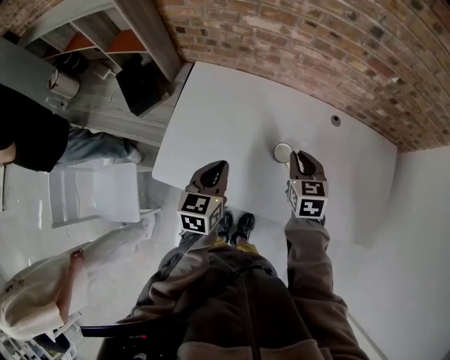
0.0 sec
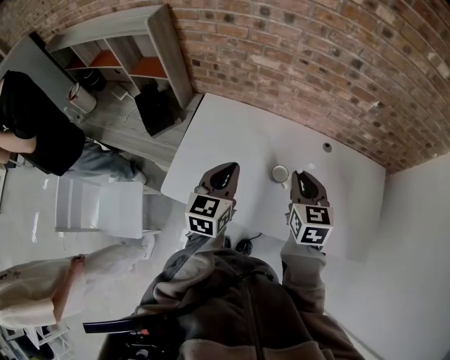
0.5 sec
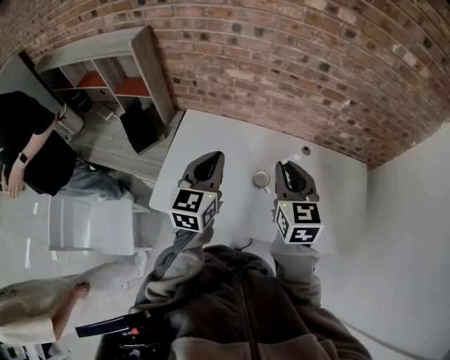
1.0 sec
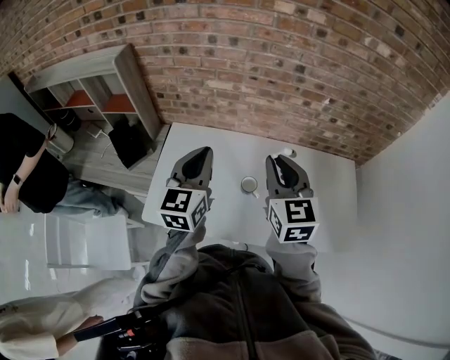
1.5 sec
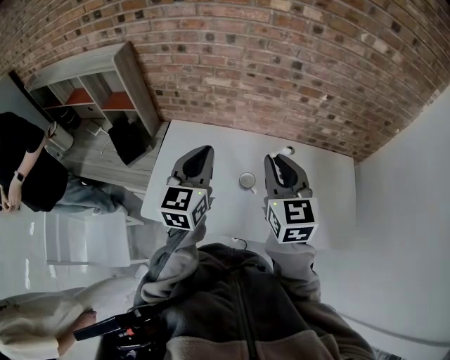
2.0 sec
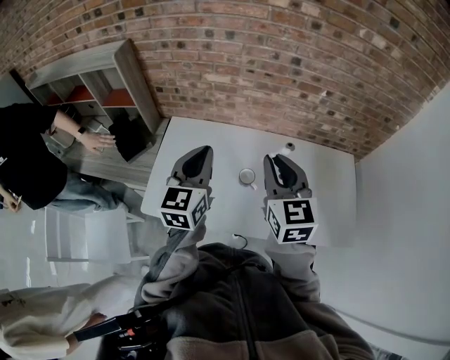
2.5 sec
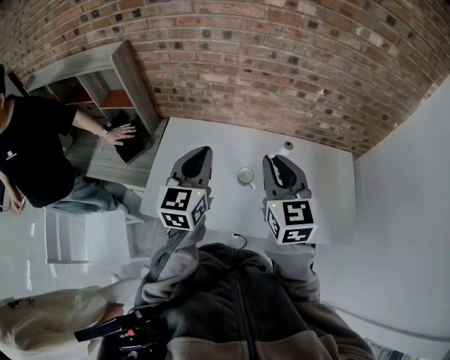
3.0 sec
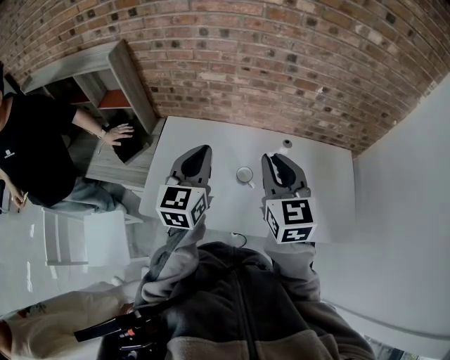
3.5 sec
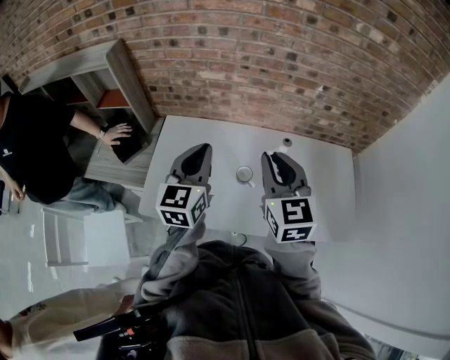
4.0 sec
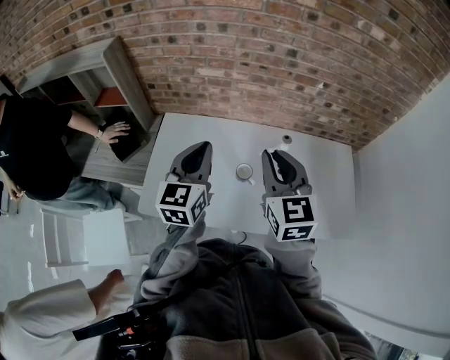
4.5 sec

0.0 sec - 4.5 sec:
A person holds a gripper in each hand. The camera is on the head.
0.0 sec - 2.0 sec: The grippers both shift upward by roughly 25 cm. The right gripper turns by approximately 30 degrees; the left gripper swivels roughly 30 degrees.
2.0 sec - 4.5 sec: The grippers make only small movements.

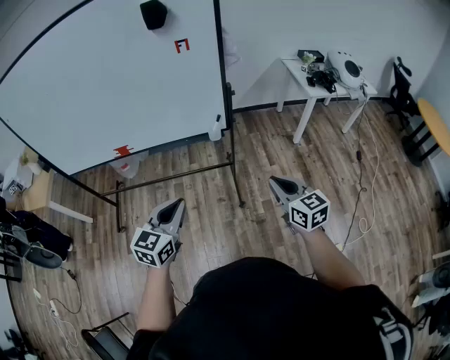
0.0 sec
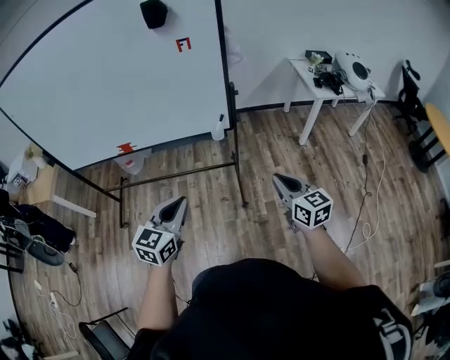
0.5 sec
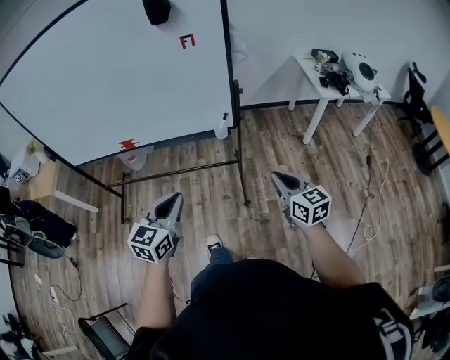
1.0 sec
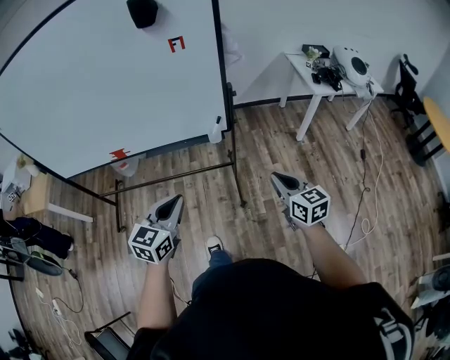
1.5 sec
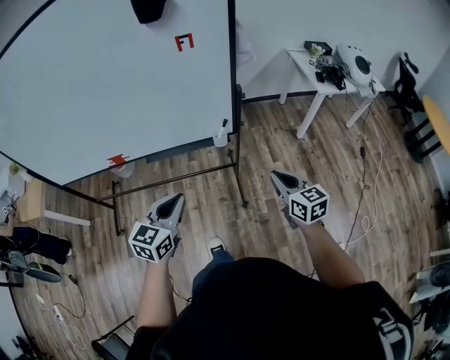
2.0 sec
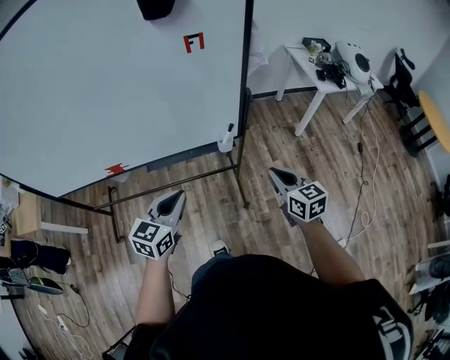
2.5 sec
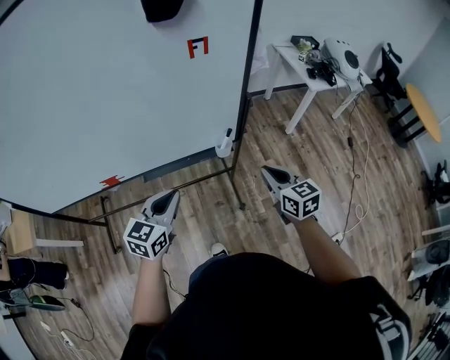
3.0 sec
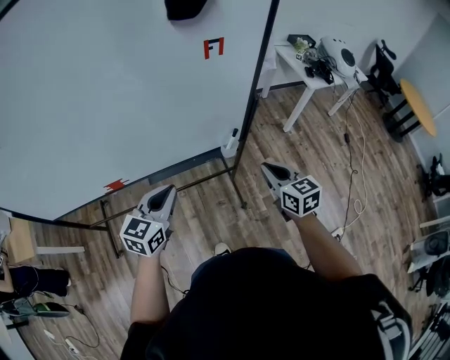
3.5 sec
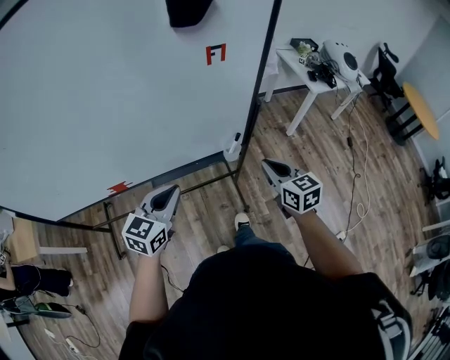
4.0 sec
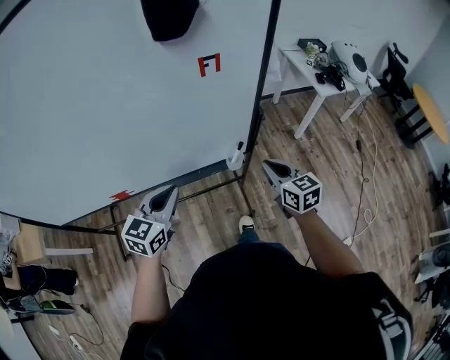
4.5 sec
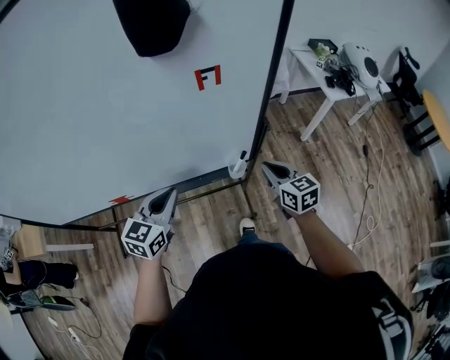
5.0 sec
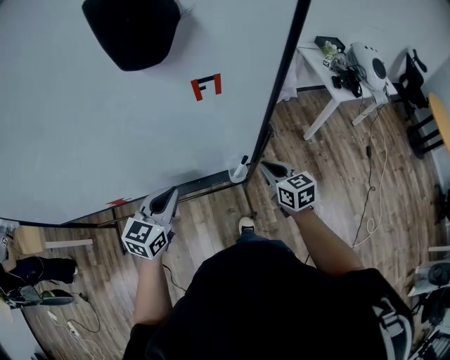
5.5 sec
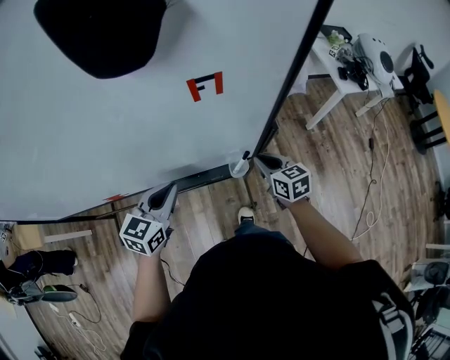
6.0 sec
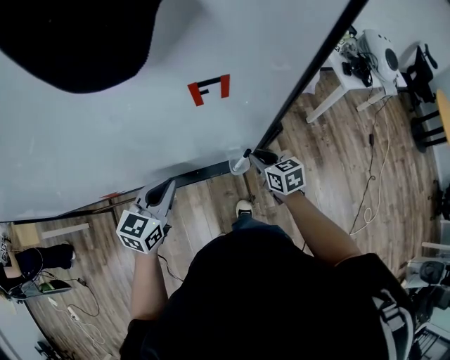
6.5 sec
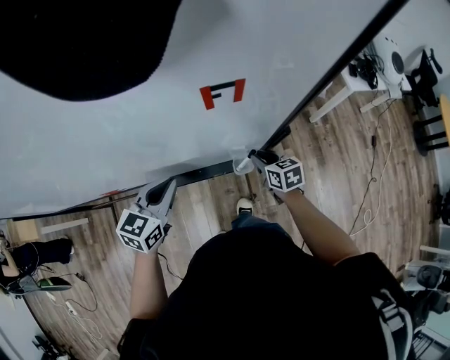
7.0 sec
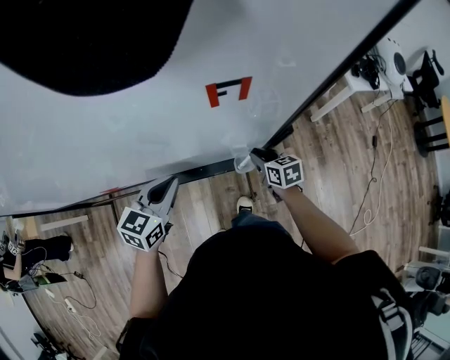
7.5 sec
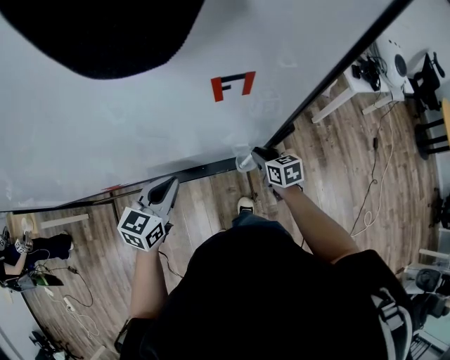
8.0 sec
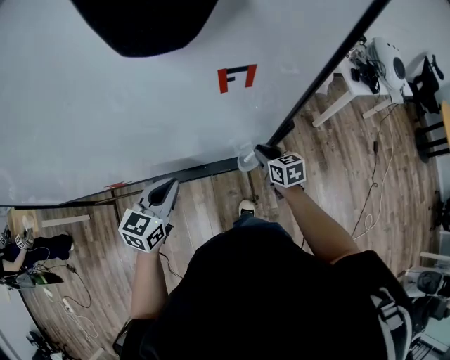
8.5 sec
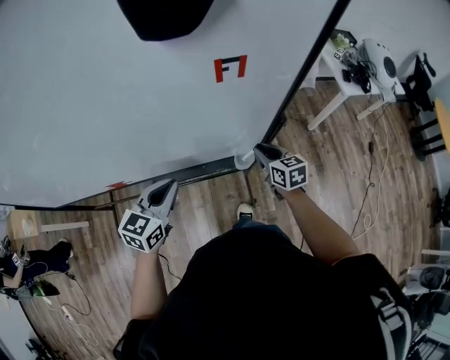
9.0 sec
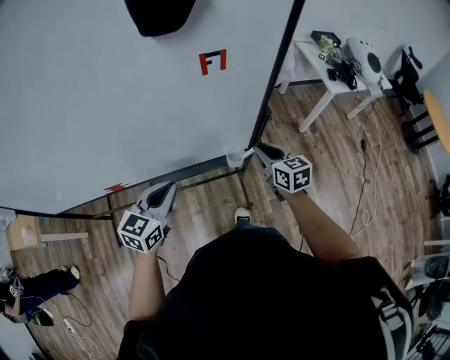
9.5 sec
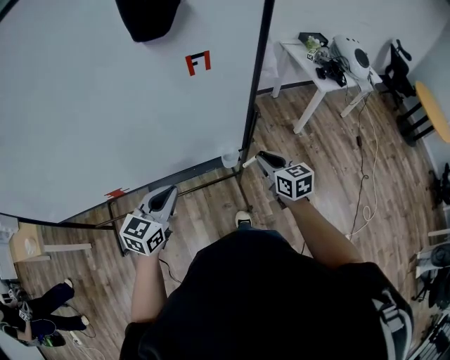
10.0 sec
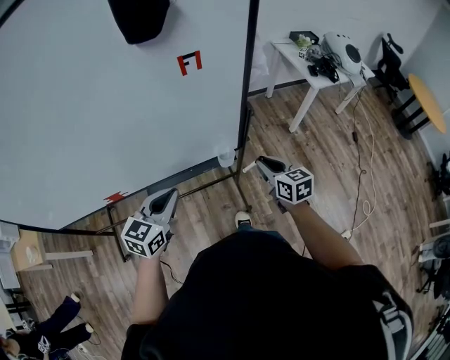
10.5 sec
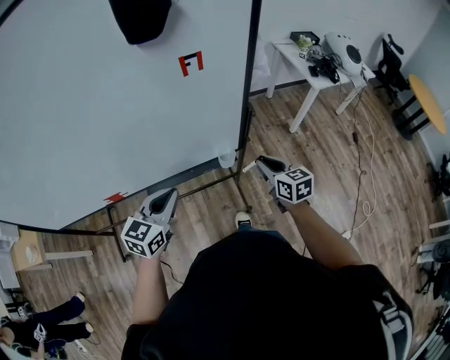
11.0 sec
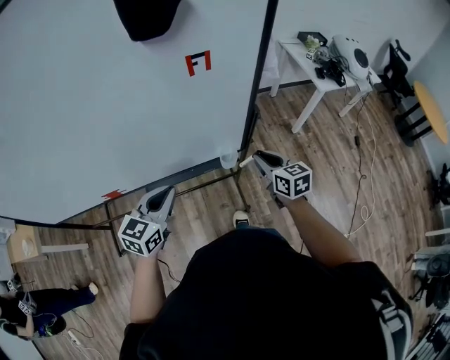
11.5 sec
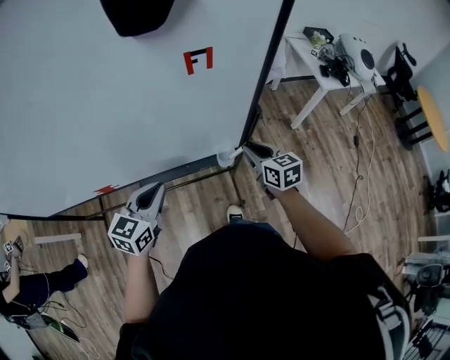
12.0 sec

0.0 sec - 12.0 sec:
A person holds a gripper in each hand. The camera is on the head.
0.0 sec - 2.0 sec: Both grippers travel together forward, about 15 cm.
2.0 sec - 4.0 sec: The right gripper shifts about 20 cm to the left and forward. Meanwhile the left gripper goes about 20 cm forward and to the left.
4.0 sec - 6.0 sec: The left gripper goes about 15 cm forward. Meanwhile the right gripper goes about 20 cm forward and downward.
6.0 sec - 8.0 sec: The right gripper is displaced downward by roughly 10 cm.
8.0 sec - 10.0 sec: The right gripper heads upward and backward, covering about 20 cm. Meanwhile the left gripper goes some 10 cm backward.
10.0 sec - 12.0 sec: The right gripper is displaced forward by about 5 cm.

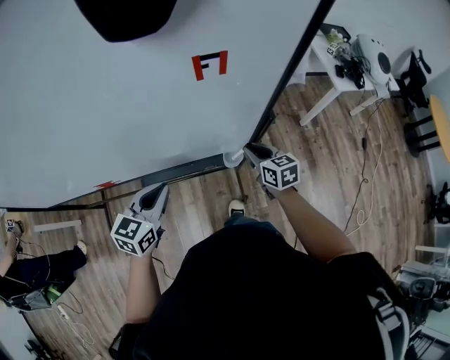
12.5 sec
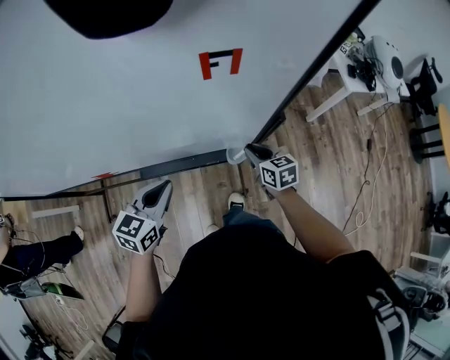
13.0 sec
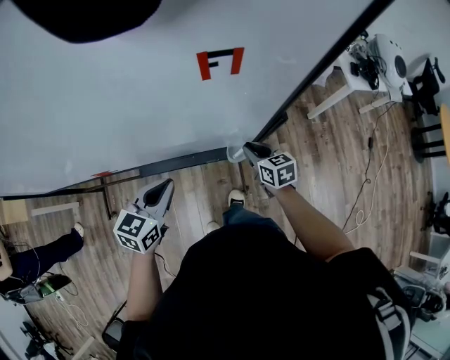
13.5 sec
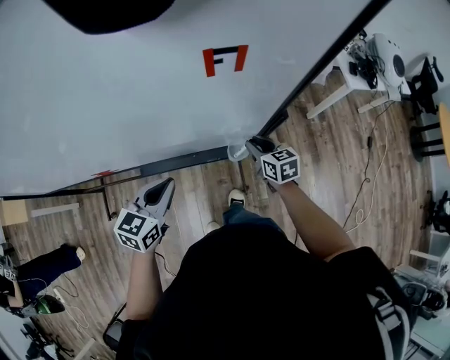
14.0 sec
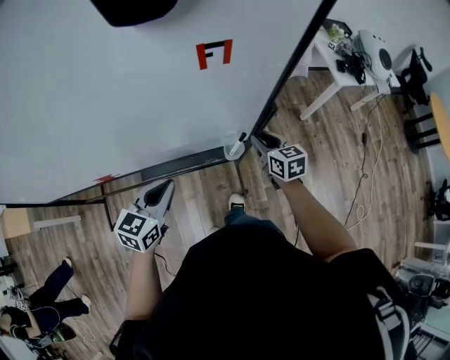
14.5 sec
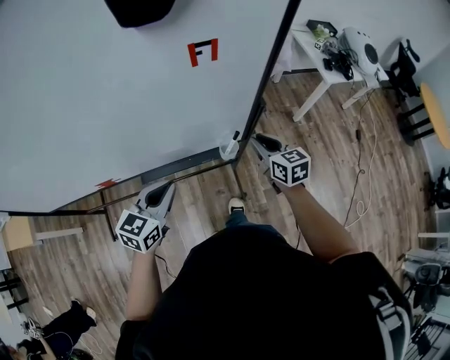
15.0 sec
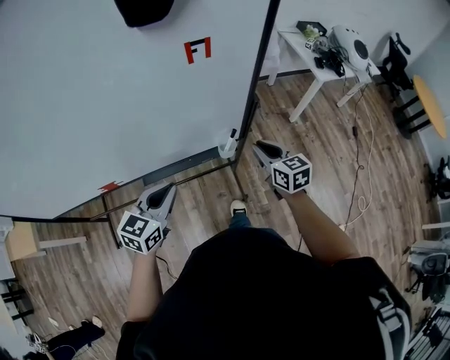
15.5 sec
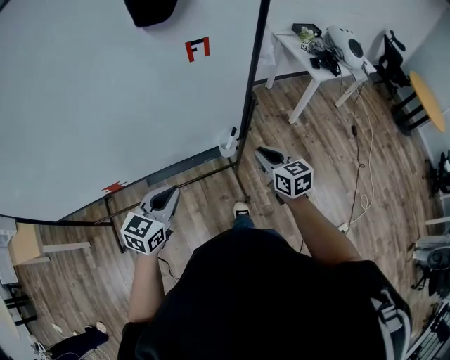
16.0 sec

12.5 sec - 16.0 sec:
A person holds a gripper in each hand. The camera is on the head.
12.5 sec - 14.5 sec: The grippers move only a little.
14.5 sec - 16.0 sec: The right gripper heads backward and upward, covering roughly 15 cm, while the left gripper moves backward, roughly 5 cm.

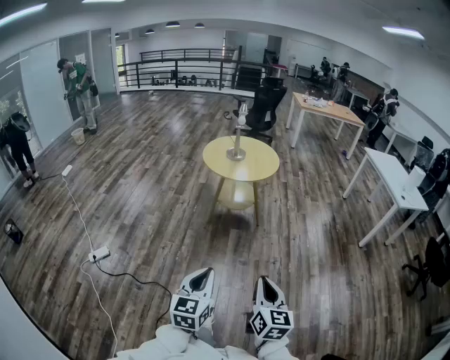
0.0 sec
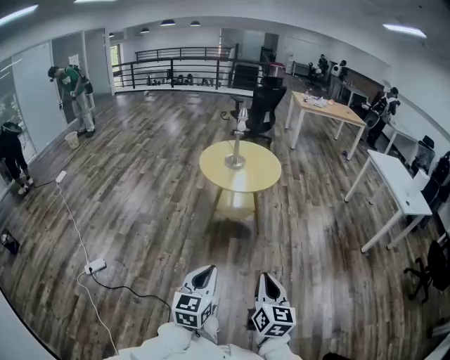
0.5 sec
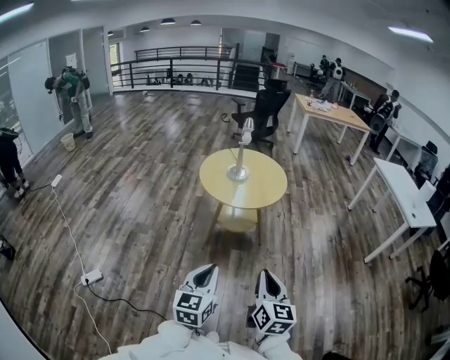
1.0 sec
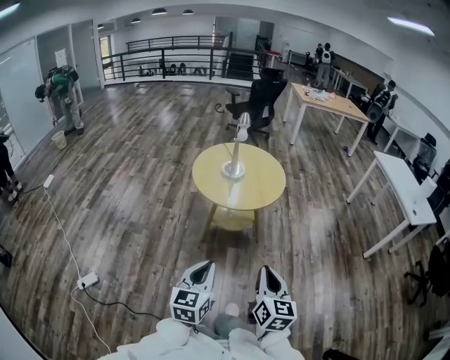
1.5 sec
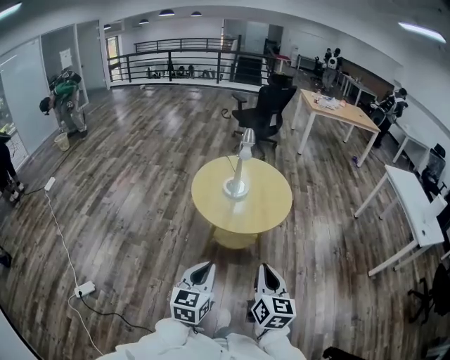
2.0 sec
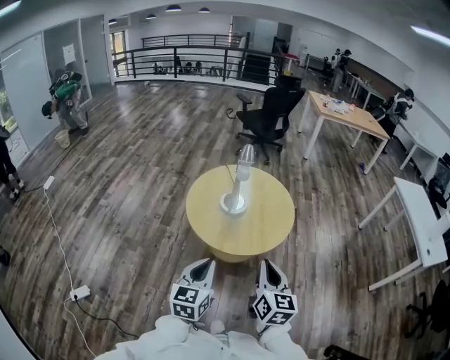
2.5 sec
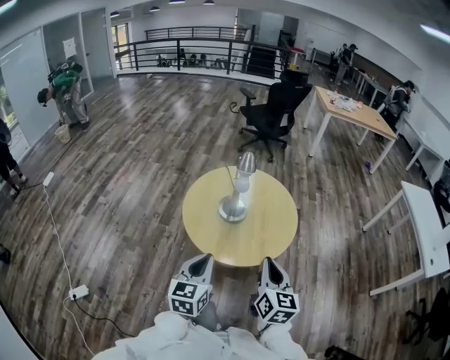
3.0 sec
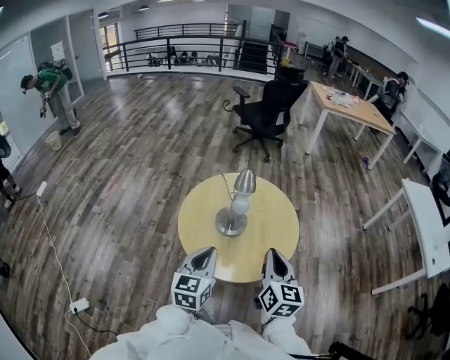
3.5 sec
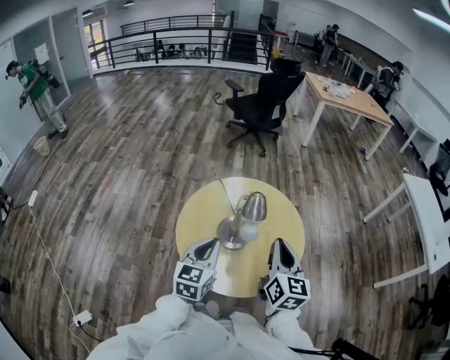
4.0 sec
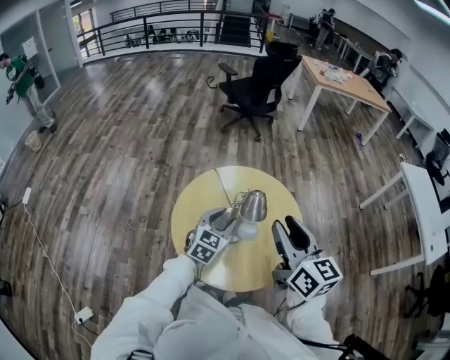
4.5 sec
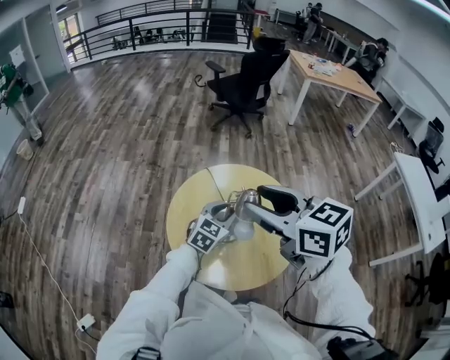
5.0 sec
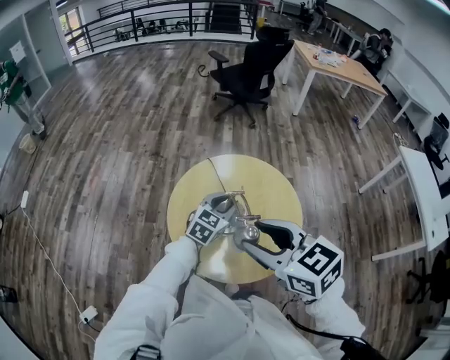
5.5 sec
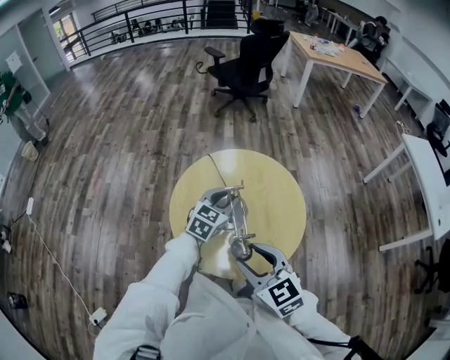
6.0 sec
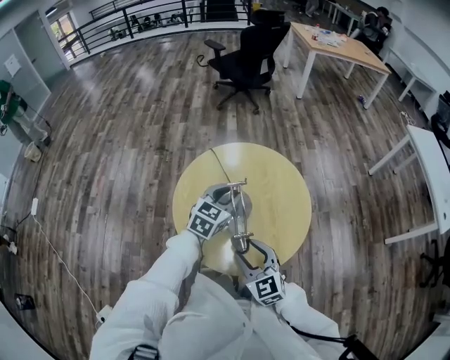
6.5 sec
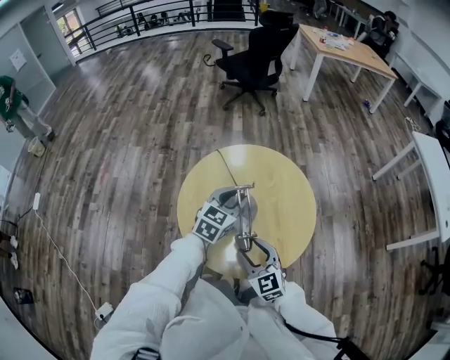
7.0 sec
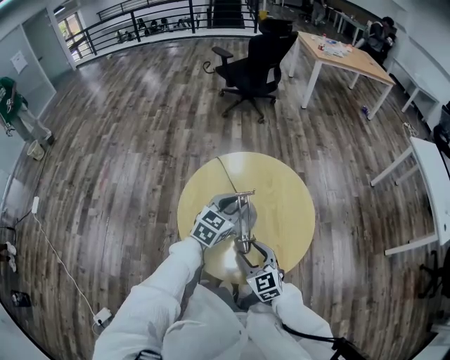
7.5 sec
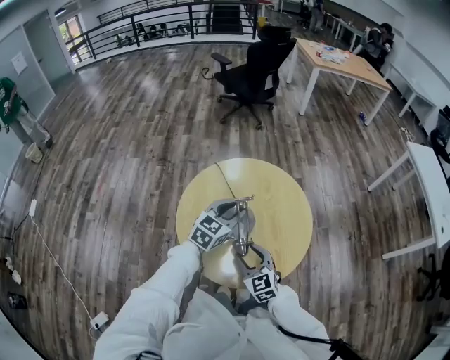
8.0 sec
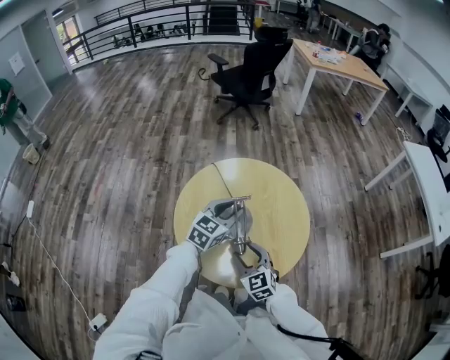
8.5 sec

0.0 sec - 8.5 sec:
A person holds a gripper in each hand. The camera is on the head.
0.0 sec - 2.0 sec: Both grippers are carried forward, roughly 50 cm.
2.0 sec - 4.0 sec: The two grippers travel together, forward, roughly 50 cm.
4.0 sec - 6.5 sec: The right gripper travels downward and to the left by roughly 15 cm, rotates some 40 degrees, and opens. Meanwhile the left gripper shifts about 15 cm forward, to the right and downward, swivels some 20 degrees, and opens its fingers.
6.5 sec - 8.5 sec: The right gripper is displaced downward by about 5 cm.
